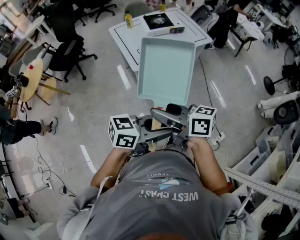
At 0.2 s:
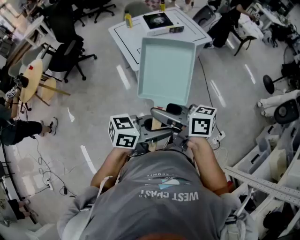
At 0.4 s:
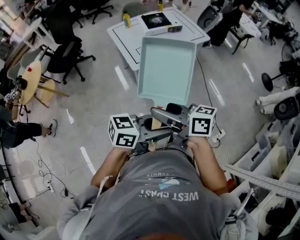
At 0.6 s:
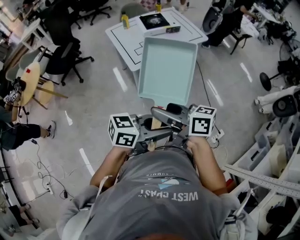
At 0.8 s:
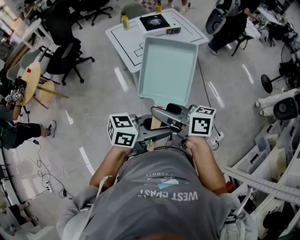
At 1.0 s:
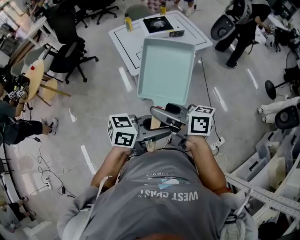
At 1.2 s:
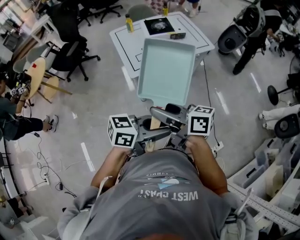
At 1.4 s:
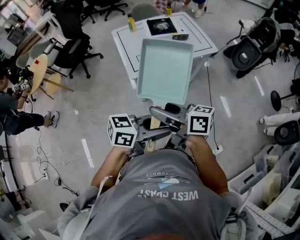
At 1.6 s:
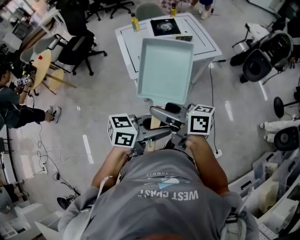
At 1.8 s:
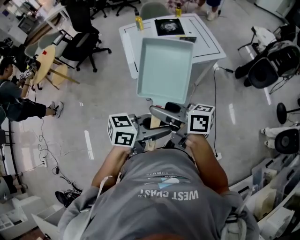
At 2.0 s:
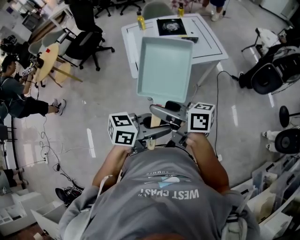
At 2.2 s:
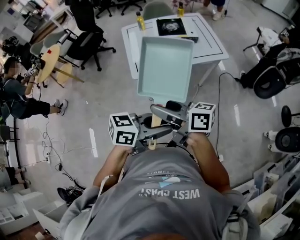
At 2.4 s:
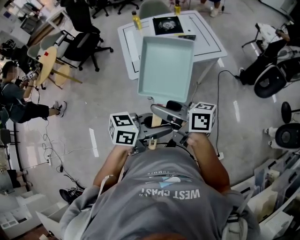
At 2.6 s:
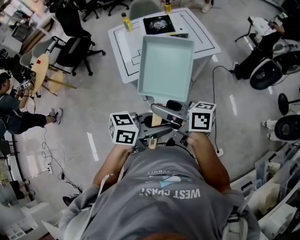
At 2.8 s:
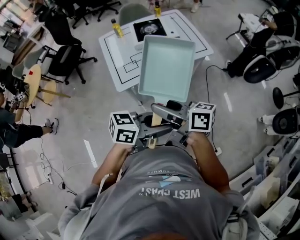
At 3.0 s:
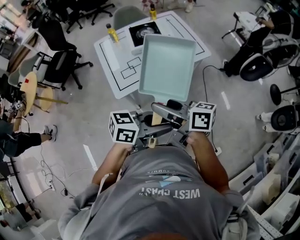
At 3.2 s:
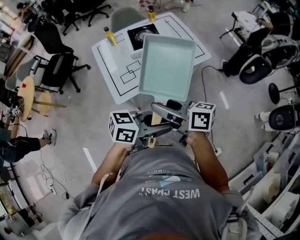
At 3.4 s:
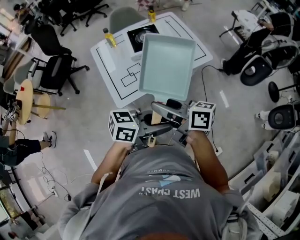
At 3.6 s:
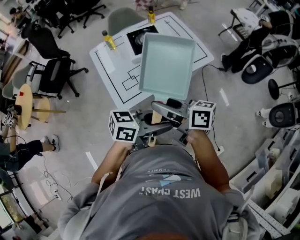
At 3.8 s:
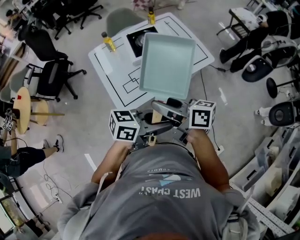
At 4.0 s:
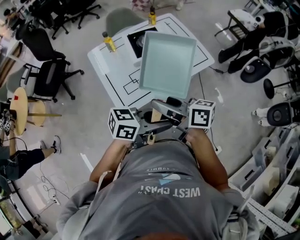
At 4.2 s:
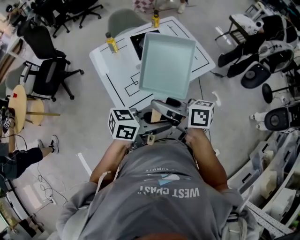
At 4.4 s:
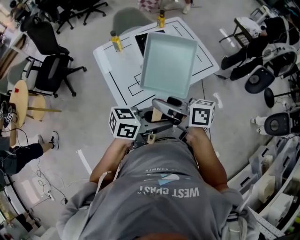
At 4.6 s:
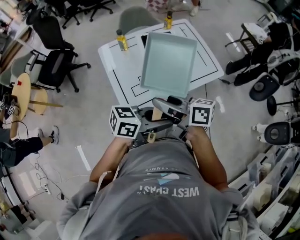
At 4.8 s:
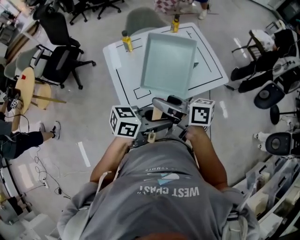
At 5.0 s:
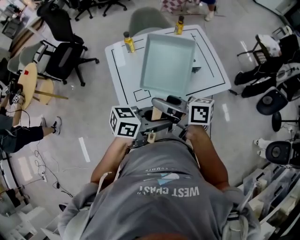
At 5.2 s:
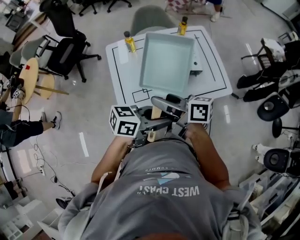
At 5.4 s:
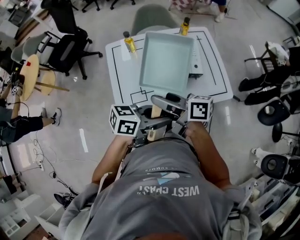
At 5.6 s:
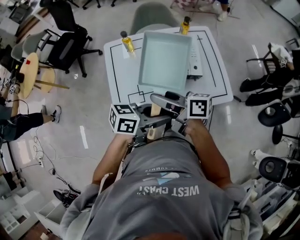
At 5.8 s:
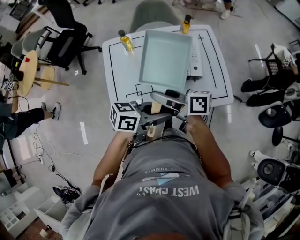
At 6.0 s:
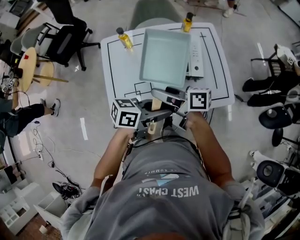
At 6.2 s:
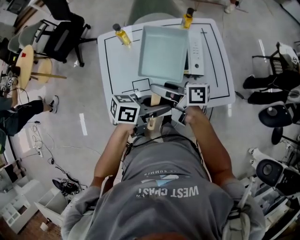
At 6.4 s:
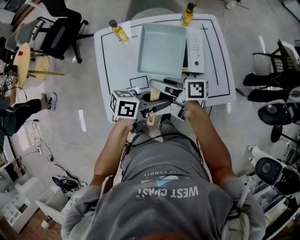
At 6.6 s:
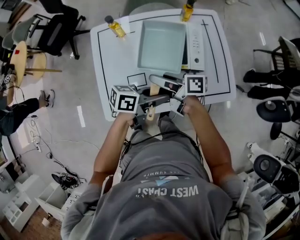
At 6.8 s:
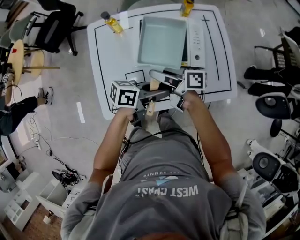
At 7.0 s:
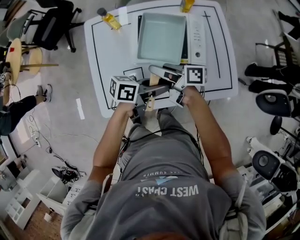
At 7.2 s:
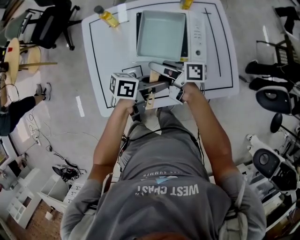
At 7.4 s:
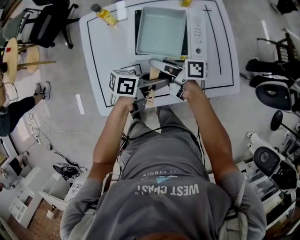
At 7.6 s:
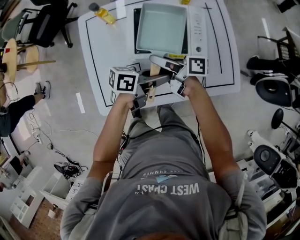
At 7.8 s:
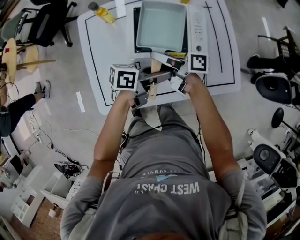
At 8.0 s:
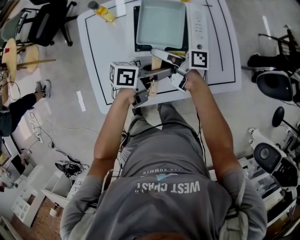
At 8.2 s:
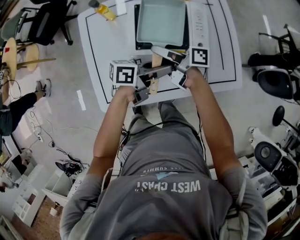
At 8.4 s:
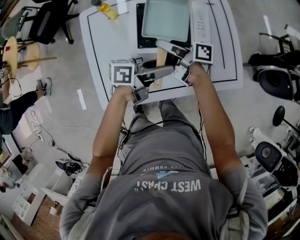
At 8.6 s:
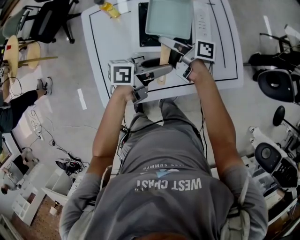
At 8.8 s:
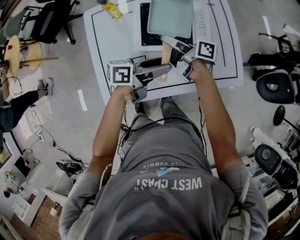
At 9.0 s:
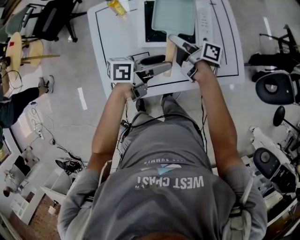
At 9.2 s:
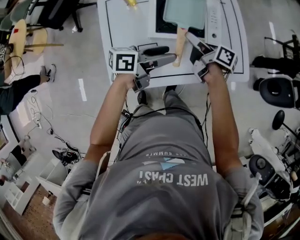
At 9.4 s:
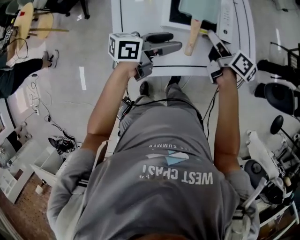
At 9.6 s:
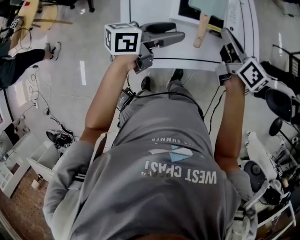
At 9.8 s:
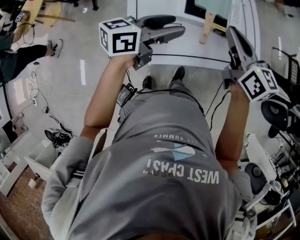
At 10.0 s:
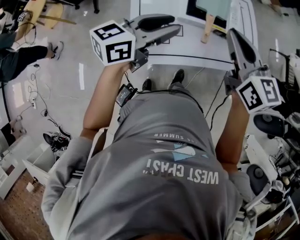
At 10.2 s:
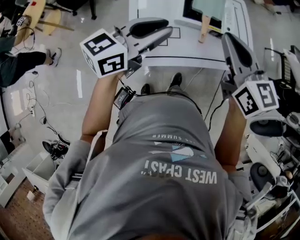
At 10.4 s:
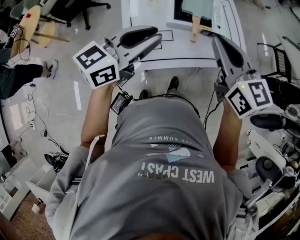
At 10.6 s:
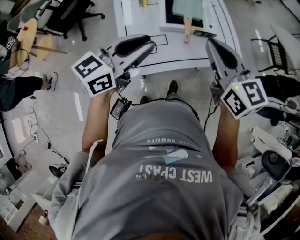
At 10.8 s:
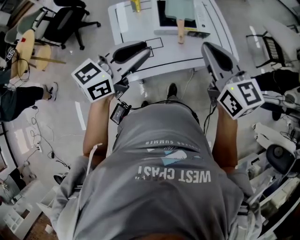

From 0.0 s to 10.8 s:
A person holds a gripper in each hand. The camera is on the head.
From 0.0 s to 1.6 s: The right gripper moves some 15 cm. Meanwhile the left gripper moves approximately 15 cm.
From 1.6 s to 3.0 s: The left gripper changes place by approximately 15 cm; the right gripper moves some 15 cm.
From 3.0 s to 4.6 s: The right gripper moves some 20 cm. The left gripper moves roughly 20 cm.
From 4.6 s to 6.2 s: The left gripper changes place by roughly 25 cm, and rotates approximately 30 degrees. The right gripper shifts by about 25 cm, and turns by approximately 20 degrees.
From 6.2 s to 7.8 s: Both grippers travel together downward, roughly 10 cm.
From 7.8 s to 9.2 s: The left gripper ends up some 10 cm from where it was, and opens. Meanwhile the right gripper moves some 10 cm, and rotates roughly 20 degrees.
From 9.2 s to 10.8 s: The right gripper travels upward and backward by approximately 40 cm, rolls counterclockwise, seen from behind, by some 70 degrees, and closes, while the left gripper heads upward, backward and to the left, covering about 30 cm, rolls clockwise, seen from behind, by roughly 40 degrees, and closes.

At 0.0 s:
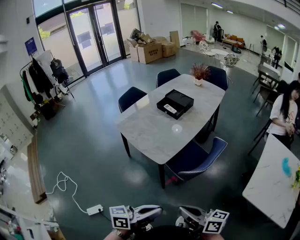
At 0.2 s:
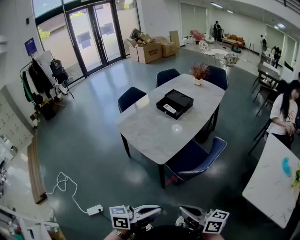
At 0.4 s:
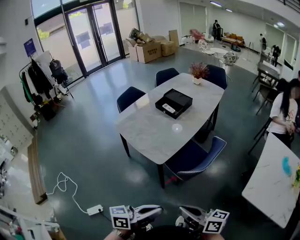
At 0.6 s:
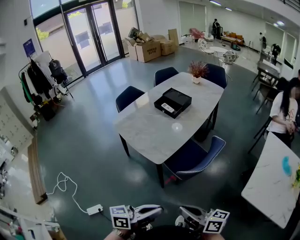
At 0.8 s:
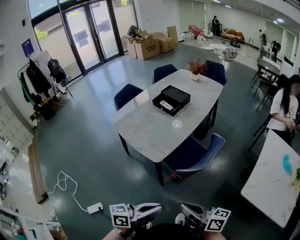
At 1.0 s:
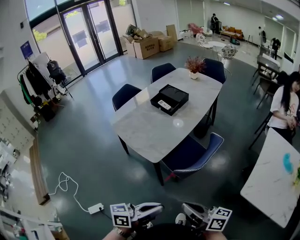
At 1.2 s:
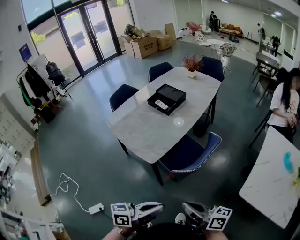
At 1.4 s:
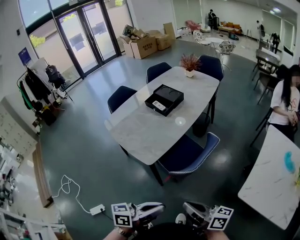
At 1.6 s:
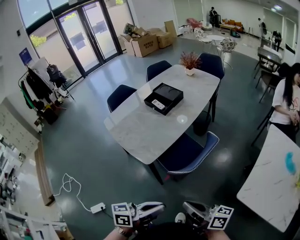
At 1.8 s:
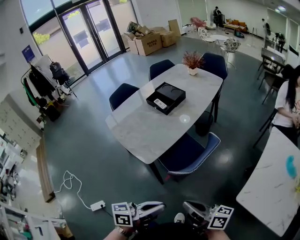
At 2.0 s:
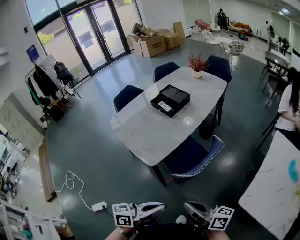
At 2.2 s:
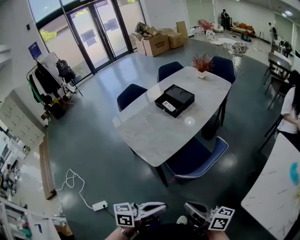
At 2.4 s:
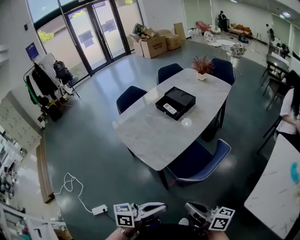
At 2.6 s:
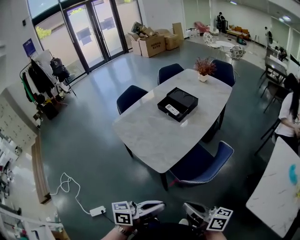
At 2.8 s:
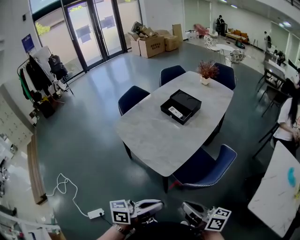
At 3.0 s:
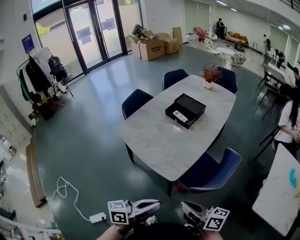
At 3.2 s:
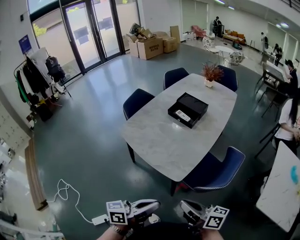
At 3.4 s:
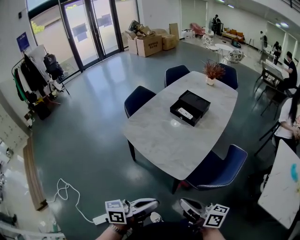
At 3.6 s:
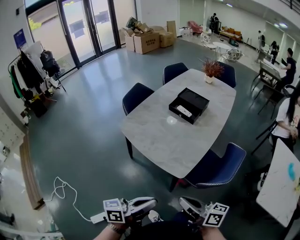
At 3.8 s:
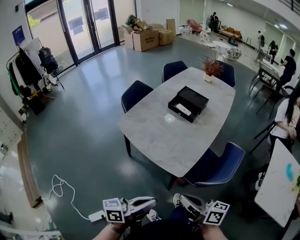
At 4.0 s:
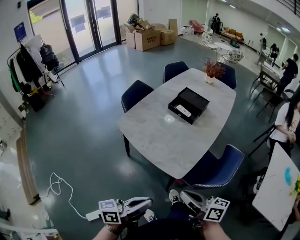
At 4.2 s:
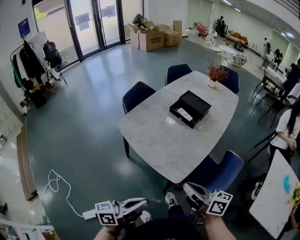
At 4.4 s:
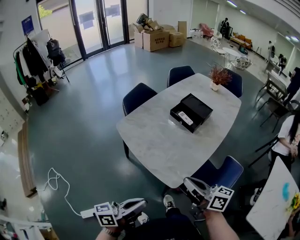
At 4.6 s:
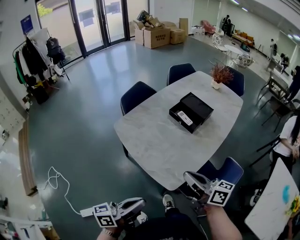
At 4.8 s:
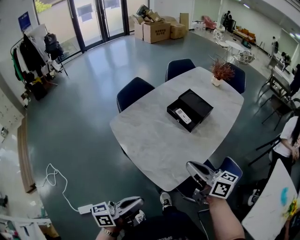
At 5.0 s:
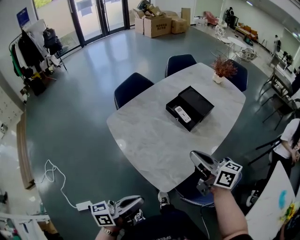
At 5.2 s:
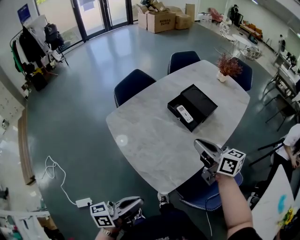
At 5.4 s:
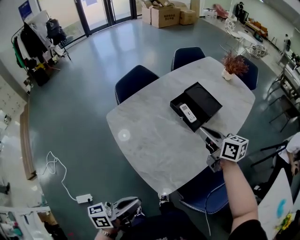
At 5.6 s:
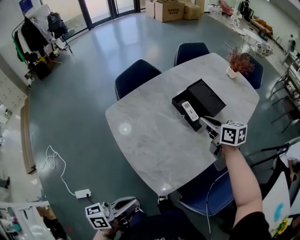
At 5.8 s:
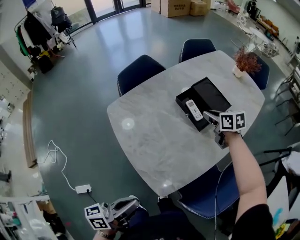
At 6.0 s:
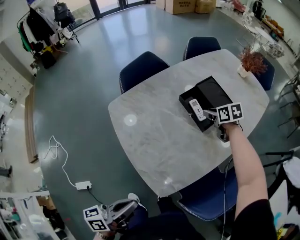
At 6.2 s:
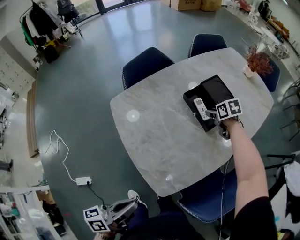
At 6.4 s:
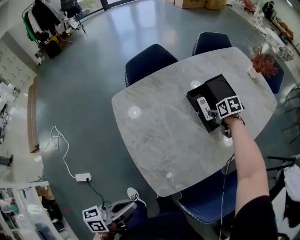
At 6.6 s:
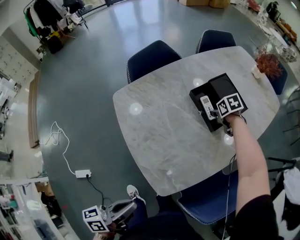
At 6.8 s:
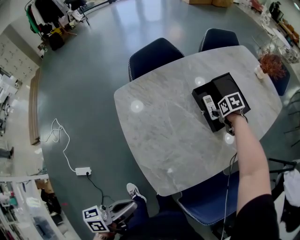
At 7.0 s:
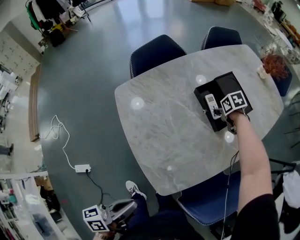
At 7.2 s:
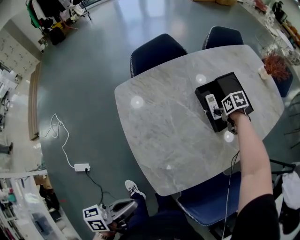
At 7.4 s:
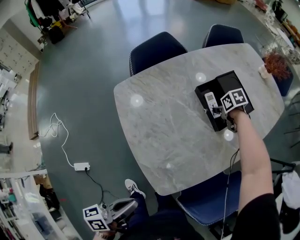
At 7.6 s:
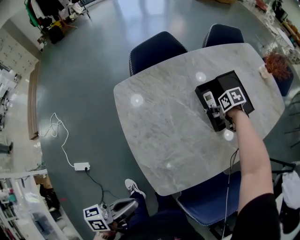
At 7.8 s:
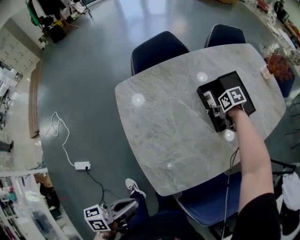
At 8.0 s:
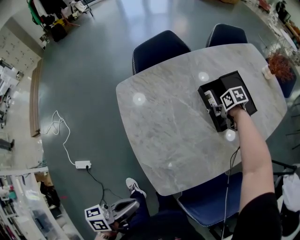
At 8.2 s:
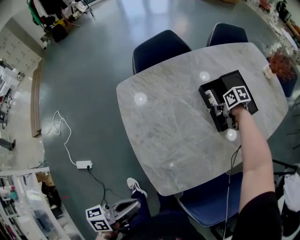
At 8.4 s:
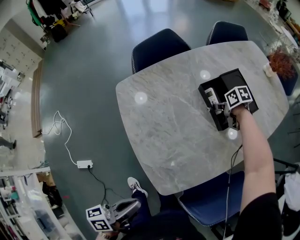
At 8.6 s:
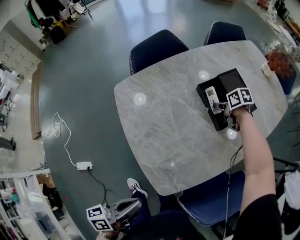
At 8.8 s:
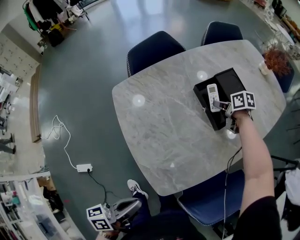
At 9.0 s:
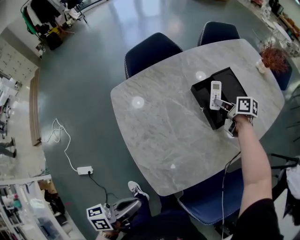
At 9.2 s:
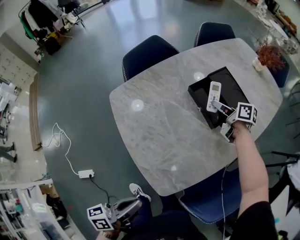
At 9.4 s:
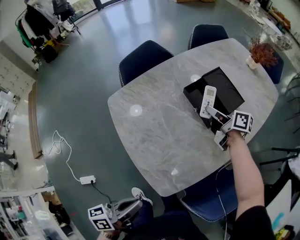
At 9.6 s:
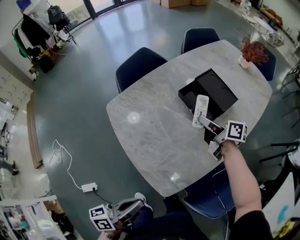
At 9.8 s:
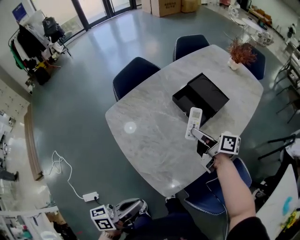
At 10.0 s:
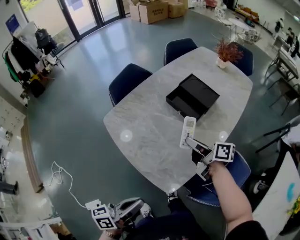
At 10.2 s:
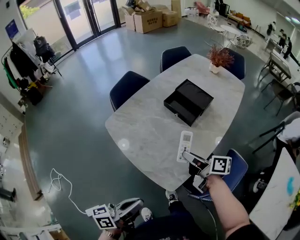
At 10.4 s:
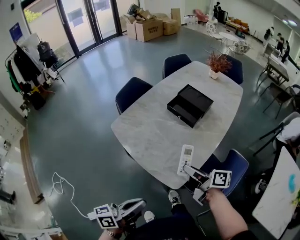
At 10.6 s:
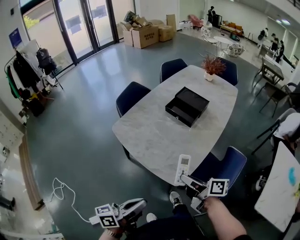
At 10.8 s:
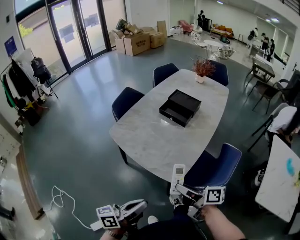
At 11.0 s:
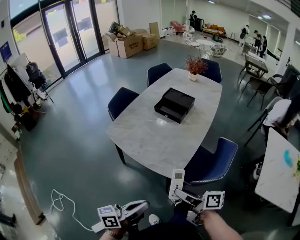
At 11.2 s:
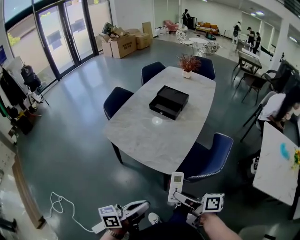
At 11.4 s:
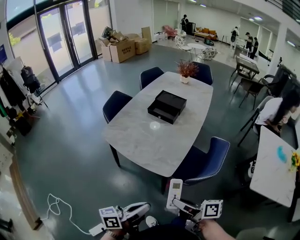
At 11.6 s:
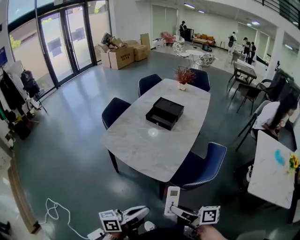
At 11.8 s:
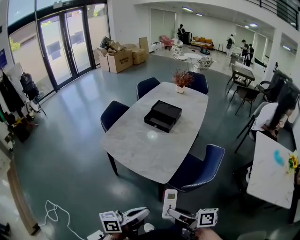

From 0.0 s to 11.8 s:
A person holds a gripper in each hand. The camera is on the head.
From 0.0 s to 1.4 s: Both grippers move to the right and forward, some 10 cm.
From 1.4 s to 3.0 s: The two grippers go about 20 cm to the left and forward.
From 3.0 s to 4.4 s: The left gripper moves to the left, about 10 cm. The right gripper goes some 15 cm forward.
From 4.4 s to 6.0 s: The left gripper travels forward and downward by roughly 10 cm, and swivels some 20 degrees. The right gripper moves forward, some 50 cm, tilts its fingers approximately 50 degrees downward, and opens.
From 6.0 s to 7.4 s: The right gripper heads downward, covering about 10 cm, and changes its angle by some 30 degrees.
From 7.4 s to 8.8 s: The right gripper turns by some 30 degrees.
From 8.8 s to 10.4 s: The right gripper is displaced backward and upward by approximately 40 cm, and tilts its fingers about 40 degrees upward. The left gripper goes some 10 cm to the left, upward and backward, and turns by about 30 degrees.
From 10.4 s to 11.8 s: The right gripper travels backward by some 30 cm; the left gripper goes about 10 cm backward.

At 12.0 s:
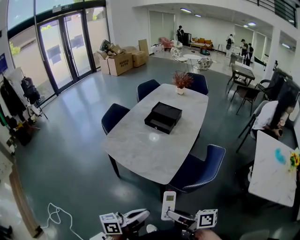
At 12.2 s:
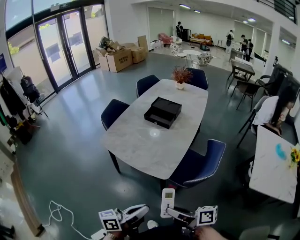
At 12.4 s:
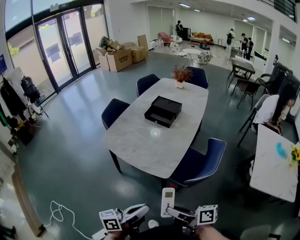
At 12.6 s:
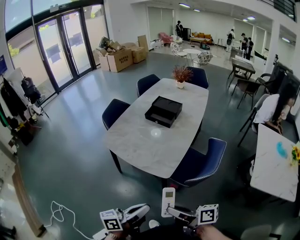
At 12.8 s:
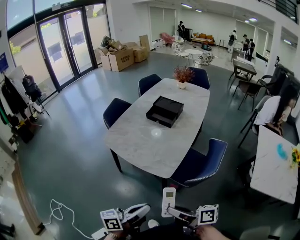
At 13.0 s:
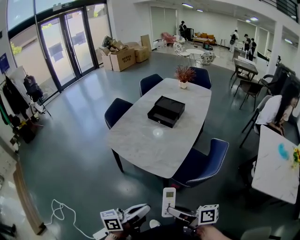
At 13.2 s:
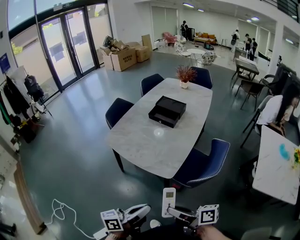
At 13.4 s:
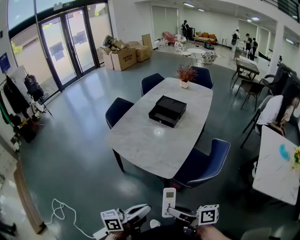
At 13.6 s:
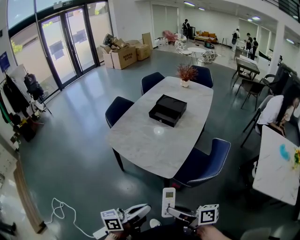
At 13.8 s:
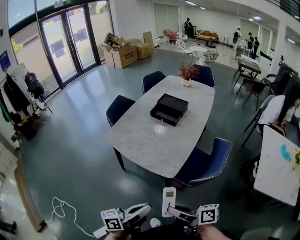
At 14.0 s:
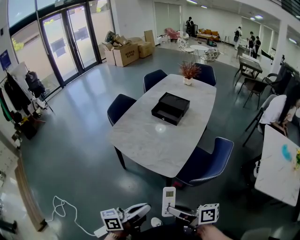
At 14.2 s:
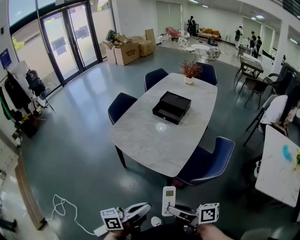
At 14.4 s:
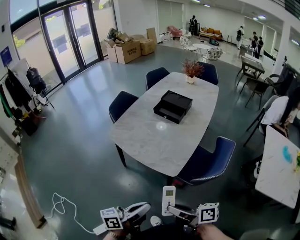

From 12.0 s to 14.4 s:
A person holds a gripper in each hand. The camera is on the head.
From 12.0 s to 14.4 s: The grippers make only small movements.
